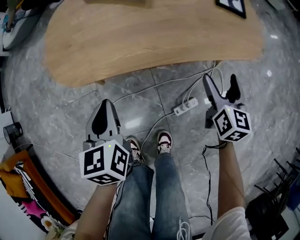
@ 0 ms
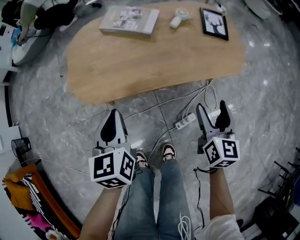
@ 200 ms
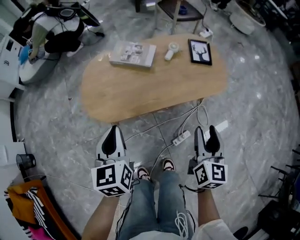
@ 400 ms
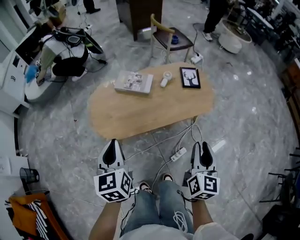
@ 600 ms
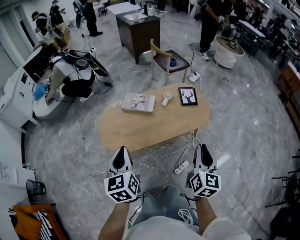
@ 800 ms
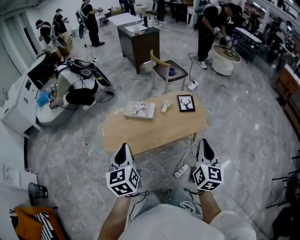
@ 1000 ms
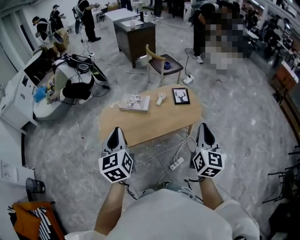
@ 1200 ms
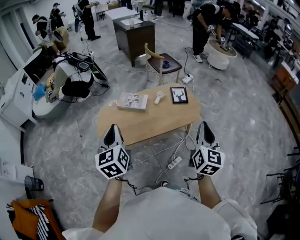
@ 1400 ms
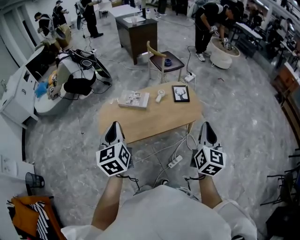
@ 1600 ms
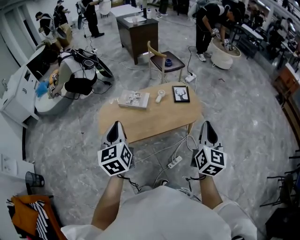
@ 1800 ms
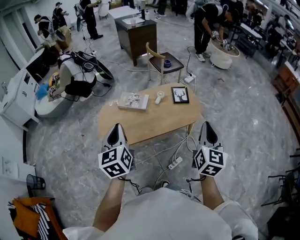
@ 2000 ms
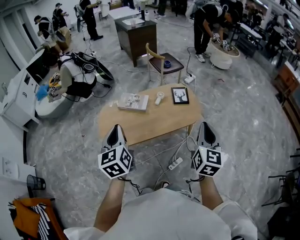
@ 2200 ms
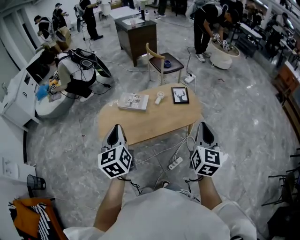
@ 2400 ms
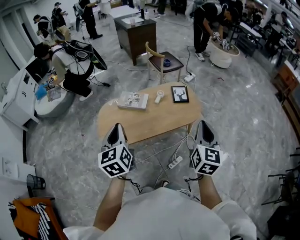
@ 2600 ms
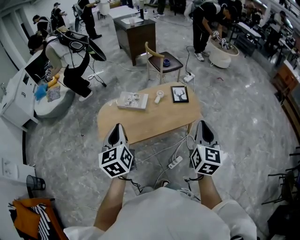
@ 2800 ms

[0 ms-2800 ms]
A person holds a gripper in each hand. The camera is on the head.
0 ms to 1400 ms: The grippers both shift upward by roughly 50 cm. The right gripper swivels roughly 30 degrees, and closes, while the left gripper rotates about 30 degrees.
1400 ms to 2800 ms: The grippers make only small movements.

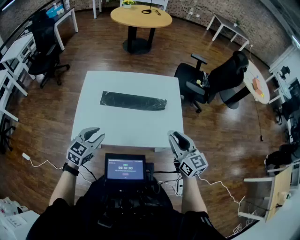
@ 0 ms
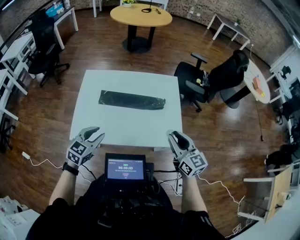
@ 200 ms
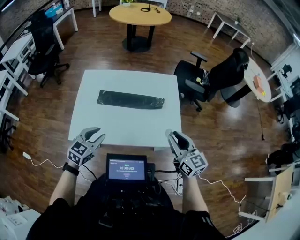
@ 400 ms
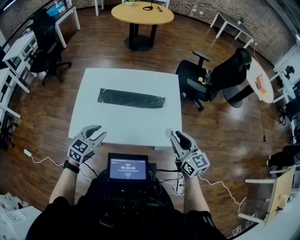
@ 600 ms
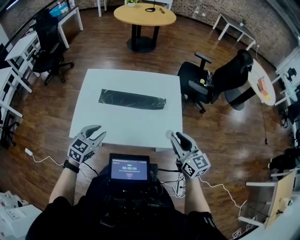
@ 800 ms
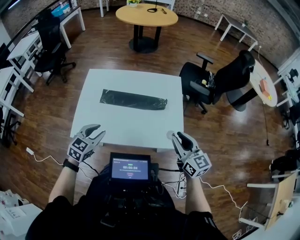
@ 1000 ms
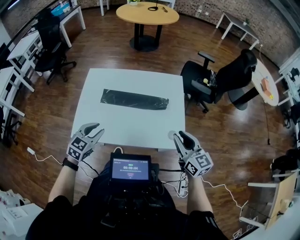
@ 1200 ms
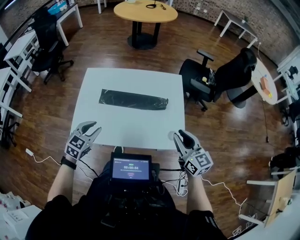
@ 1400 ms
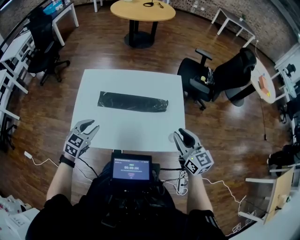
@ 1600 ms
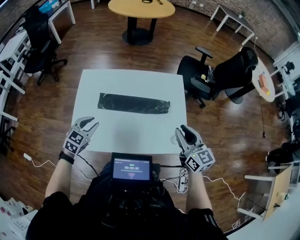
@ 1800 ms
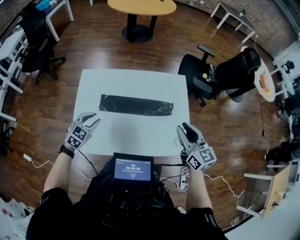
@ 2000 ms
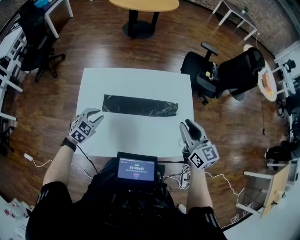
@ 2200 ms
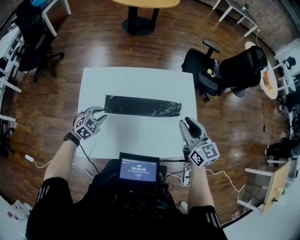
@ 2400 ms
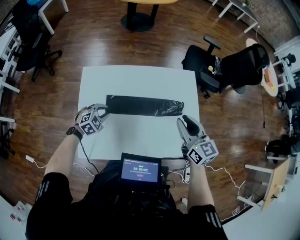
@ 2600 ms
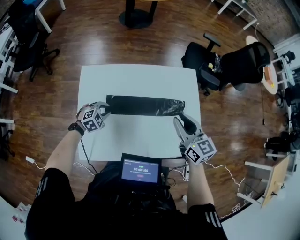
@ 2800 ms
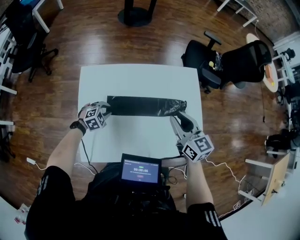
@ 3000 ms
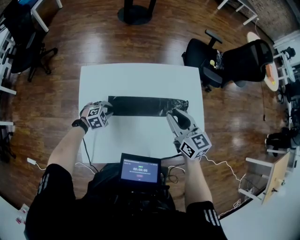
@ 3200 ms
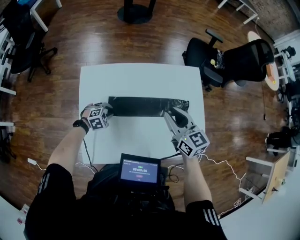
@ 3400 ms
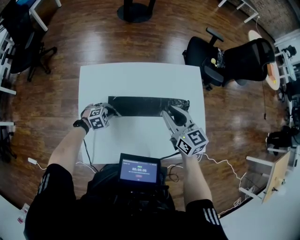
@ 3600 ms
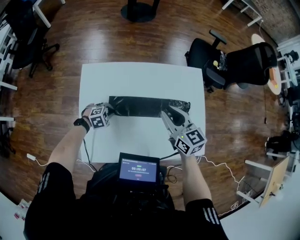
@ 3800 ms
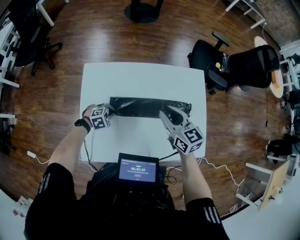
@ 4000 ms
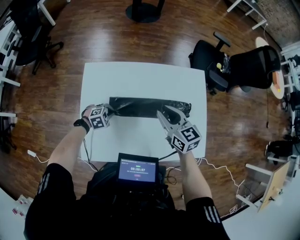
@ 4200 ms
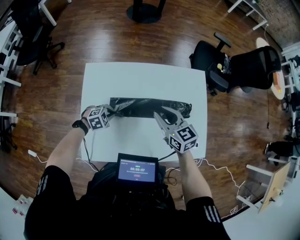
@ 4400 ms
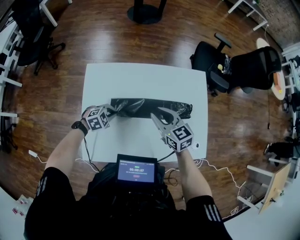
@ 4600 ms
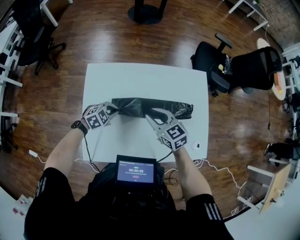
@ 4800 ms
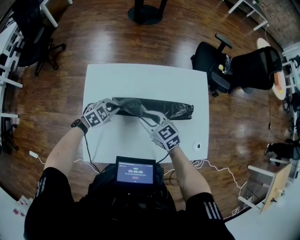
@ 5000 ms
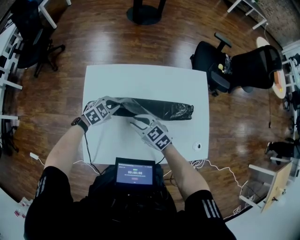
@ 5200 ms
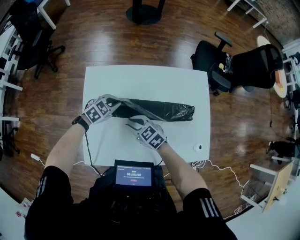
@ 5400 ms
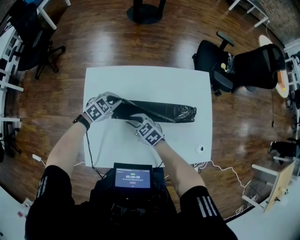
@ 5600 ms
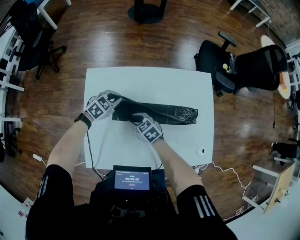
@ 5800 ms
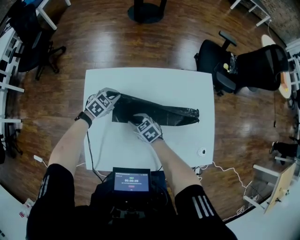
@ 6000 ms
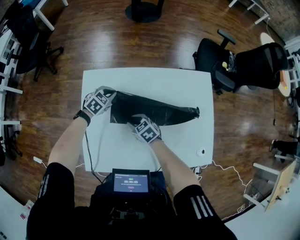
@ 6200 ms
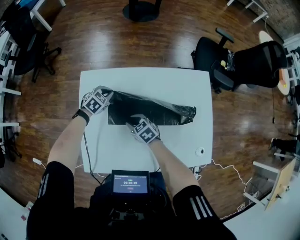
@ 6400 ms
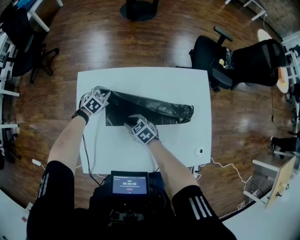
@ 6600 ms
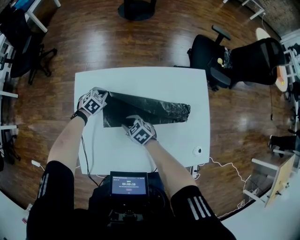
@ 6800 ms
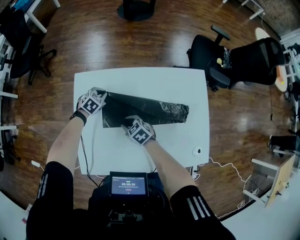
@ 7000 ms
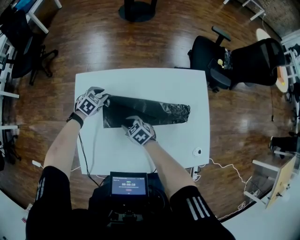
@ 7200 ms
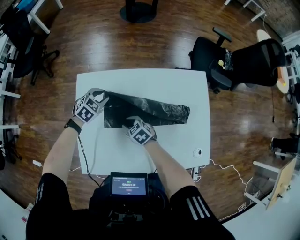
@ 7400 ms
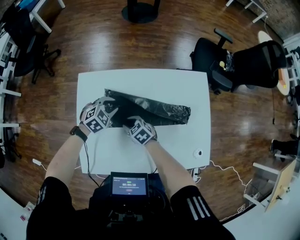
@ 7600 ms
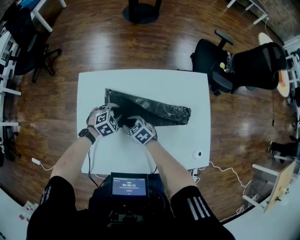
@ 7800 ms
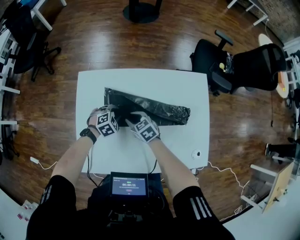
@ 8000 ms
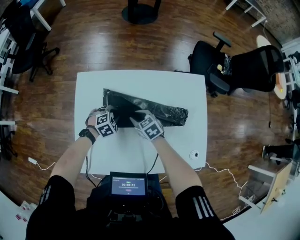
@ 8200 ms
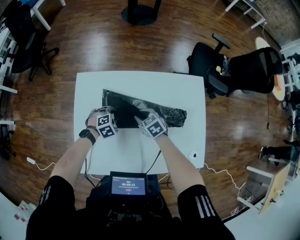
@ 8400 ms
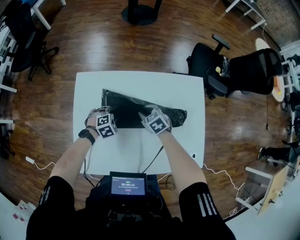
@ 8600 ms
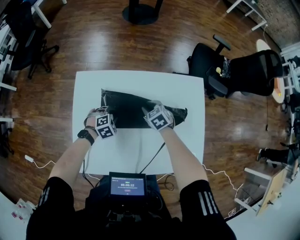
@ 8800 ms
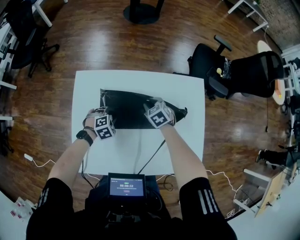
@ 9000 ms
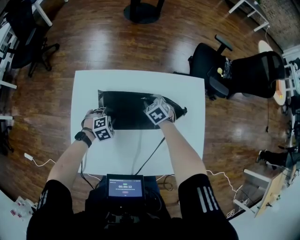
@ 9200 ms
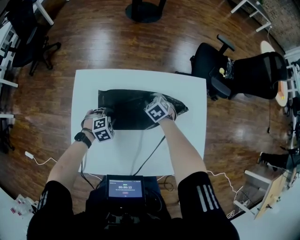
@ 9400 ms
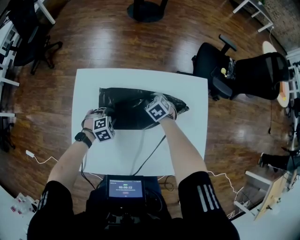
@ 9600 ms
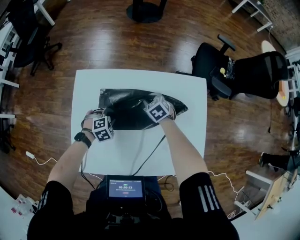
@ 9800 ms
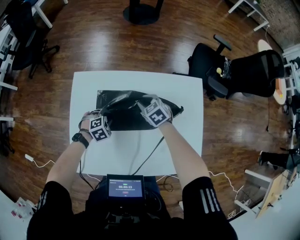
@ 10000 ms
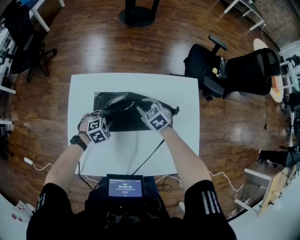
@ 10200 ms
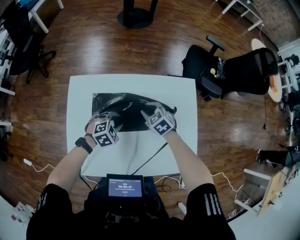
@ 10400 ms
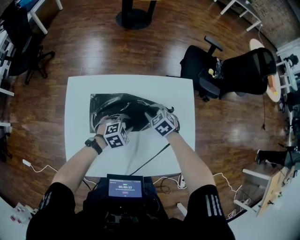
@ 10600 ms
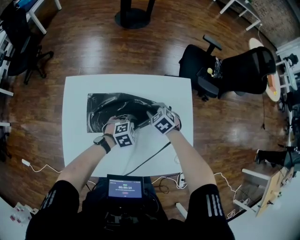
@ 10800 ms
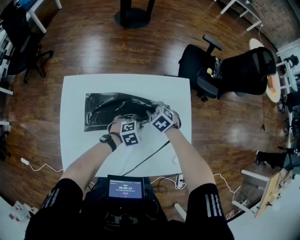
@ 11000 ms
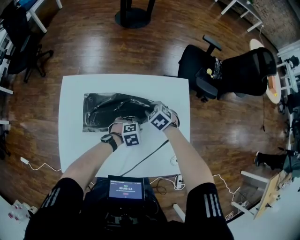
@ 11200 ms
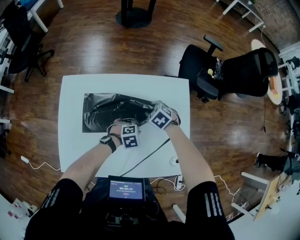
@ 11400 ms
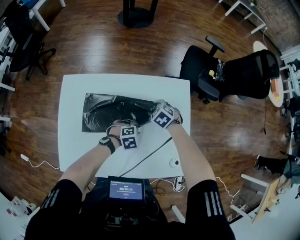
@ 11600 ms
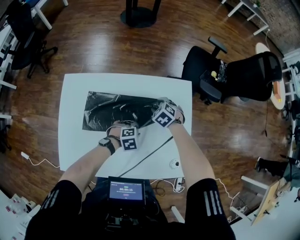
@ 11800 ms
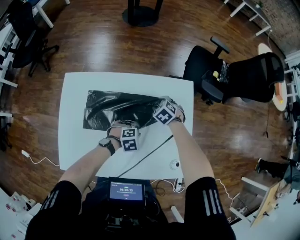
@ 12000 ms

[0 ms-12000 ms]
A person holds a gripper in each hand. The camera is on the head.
0 ms to 1600 ms: Both grippers move forward, about 5 cm.
1600 ms to 3000 ms: The right gripper moves to the left and forward, roughly 20 cm. The left gripper shifts some 25 cm downward and forward, and swivels some 40 degrees.
3000 ms to 4400 ms: The right gripper goes about 10 cm to the left and downward. Meanwhile the left gripper closes its fingers.
4400 ms to 6000 ms: The right gripper heads downward, covering roughly 20 cm, and changes its angle by approximately 30 degrees. Meanwhile the left gripper moves roughly 15 cm, and turns by about 20 degrees.
6000 ms to 7600 ms: The left gripper opens.
7600 ms to 9000 ms: The left gripper moves downward, roughly 10 cm. The right gripper moves to the right and forward, roughly 20 cm.
9000 ms to 10400 ms: The right gripper shifts by roughly 5 cm; the left gripper travels to the right and upward by about 10 cm.
10400 ms to 12000 ms: The left gripper shifts by approximately 20 cm, while the right gripper moves about 15 cm.

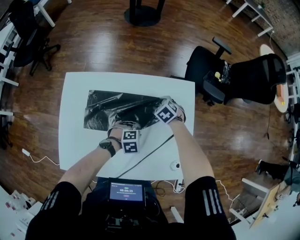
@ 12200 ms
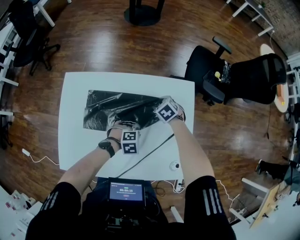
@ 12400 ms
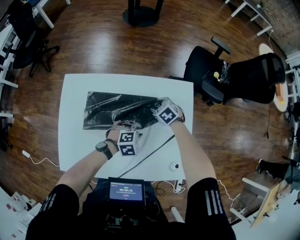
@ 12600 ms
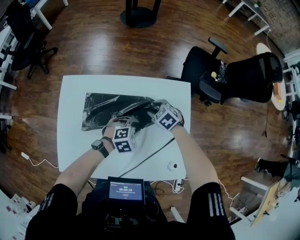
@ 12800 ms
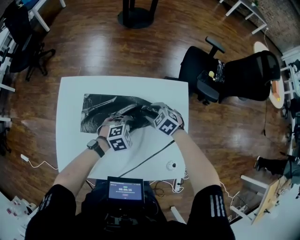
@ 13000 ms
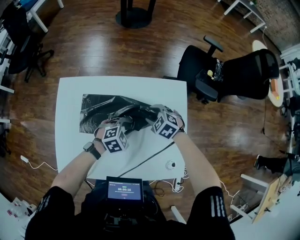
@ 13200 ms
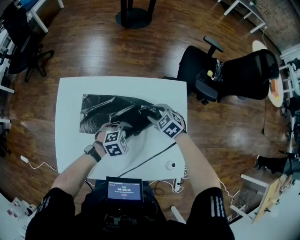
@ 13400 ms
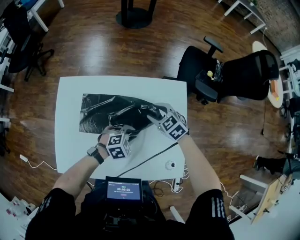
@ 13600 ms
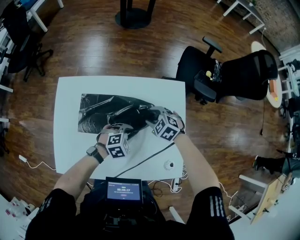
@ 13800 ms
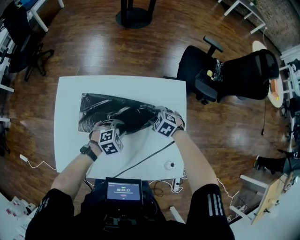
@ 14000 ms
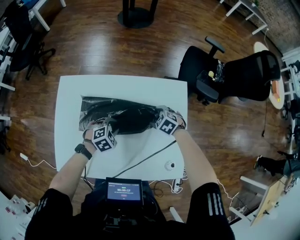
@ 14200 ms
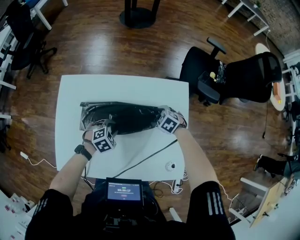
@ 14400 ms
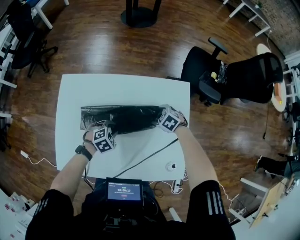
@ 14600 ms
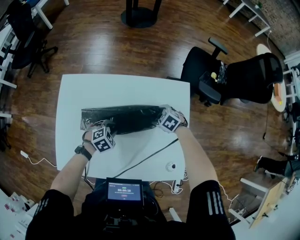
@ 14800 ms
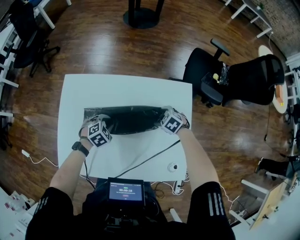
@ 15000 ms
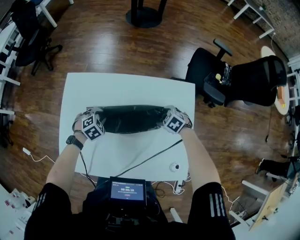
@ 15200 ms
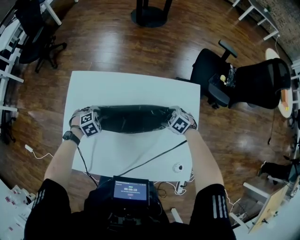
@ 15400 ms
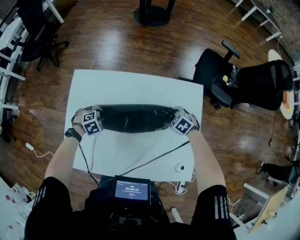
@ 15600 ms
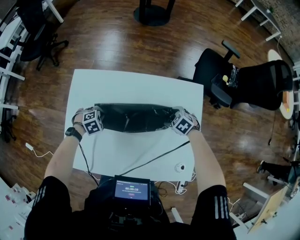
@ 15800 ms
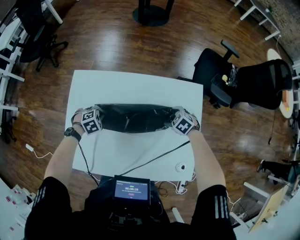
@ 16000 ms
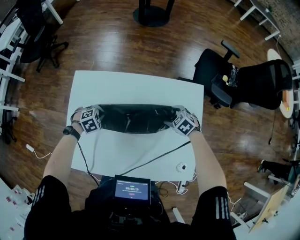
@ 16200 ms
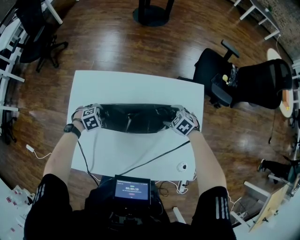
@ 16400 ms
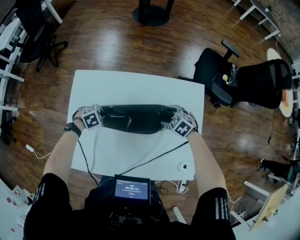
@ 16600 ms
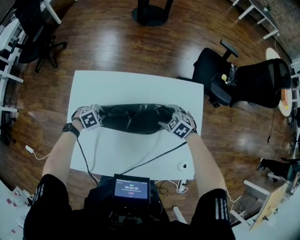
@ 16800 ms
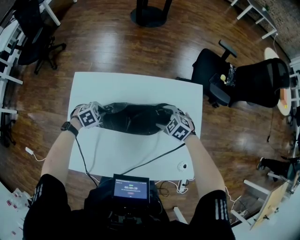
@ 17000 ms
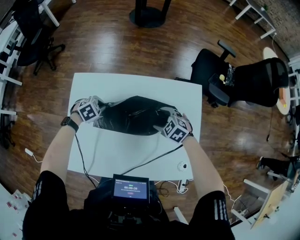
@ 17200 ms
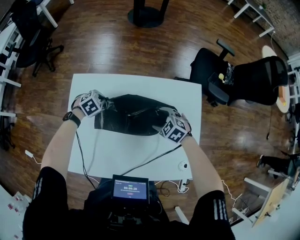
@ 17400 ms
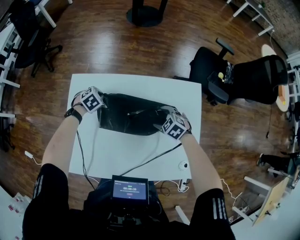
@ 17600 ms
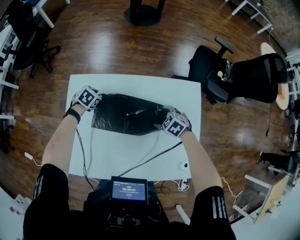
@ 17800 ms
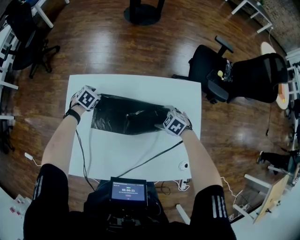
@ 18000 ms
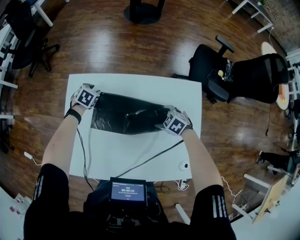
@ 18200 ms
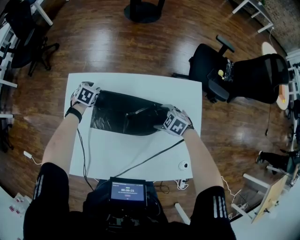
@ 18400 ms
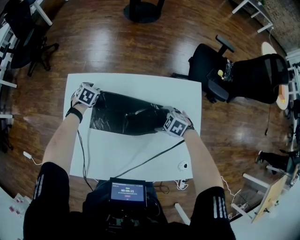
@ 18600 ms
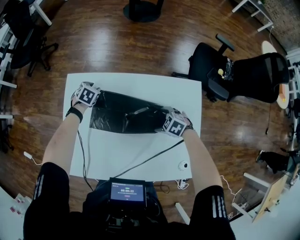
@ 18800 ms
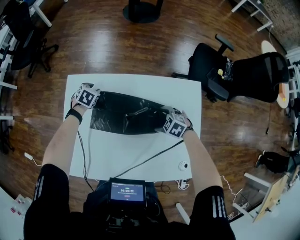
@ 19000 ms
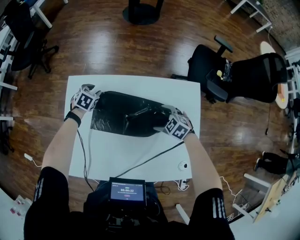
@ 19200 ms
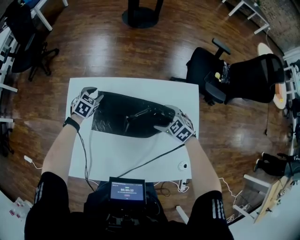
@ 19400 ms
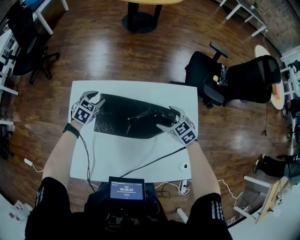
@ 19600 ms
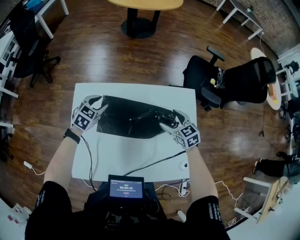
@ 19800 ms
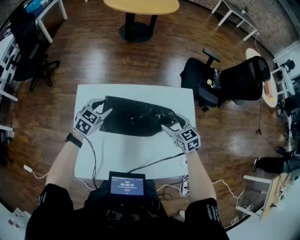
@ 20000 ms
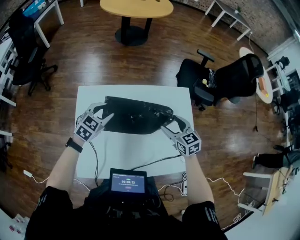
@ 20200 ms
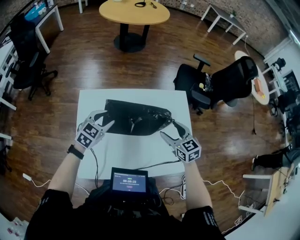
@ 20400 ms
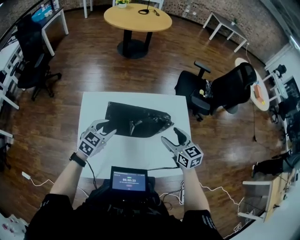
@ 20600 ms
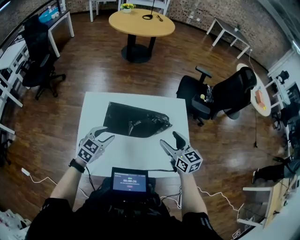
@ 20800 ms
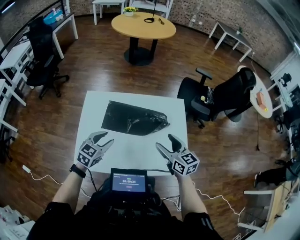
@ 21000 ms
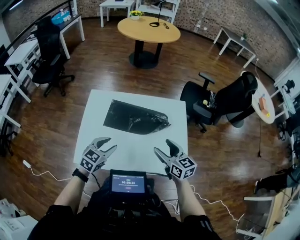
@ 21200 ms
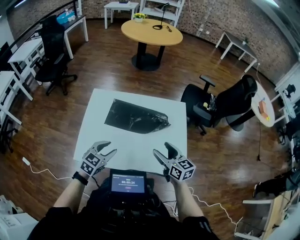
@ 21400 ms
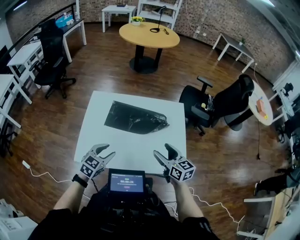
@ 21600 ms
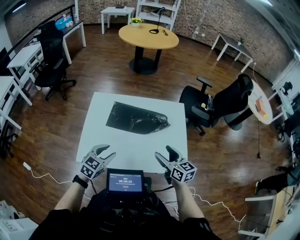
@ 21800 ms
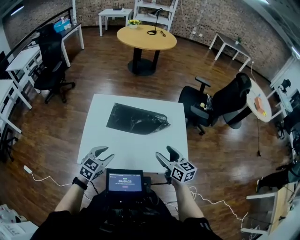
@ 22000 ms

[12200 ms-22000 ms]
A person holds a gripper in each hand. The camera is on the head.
12200 ms to 13600 ms: The left gripper shifts some 5 cm upward. Meanwhile the right gripper heads upward and backward, covering roughly 10 cm, and swivels about 20 degrees.
13600 ms to 15000 ms: The right gripper shifts approximately 10 cm downward, and changes its angle by about 20 degrees; the left gripper moves some 15 cm, and turns by about 20 degrees.
15000 ms to 16400 ms: The left gripper ends up roughly 15 cm from where it was, and closes and opens again.
16400 ms to 17800 ms: The left gripper moves approximately 15 cm, turns by approximately 30 degrees, and closes, then reopens.
17800 ms to 19200 ms: The grippers make only small movements.
19200 ms to 20600 ms: The left gripper changes place by approximately 30 cm, and changes its angle by approximately 30 degrees; the right gripper heads upward, covering approximately 25 cm, and angles its fingers upward, by roughly 30 degrees.
20600 ms to 22000 ms: Both grippers move backward, roughly 20 cm.
